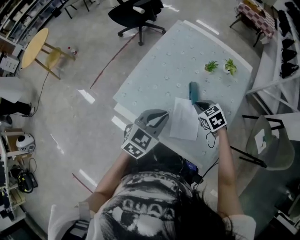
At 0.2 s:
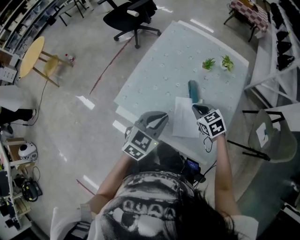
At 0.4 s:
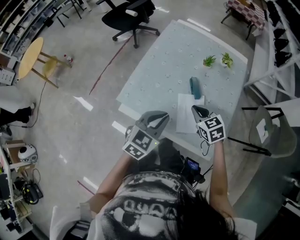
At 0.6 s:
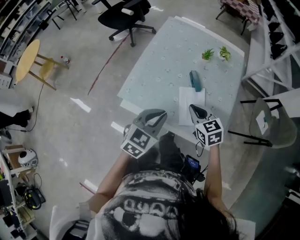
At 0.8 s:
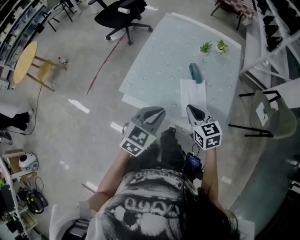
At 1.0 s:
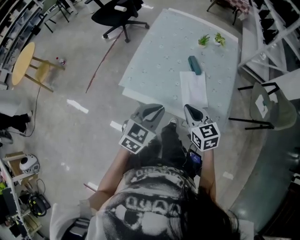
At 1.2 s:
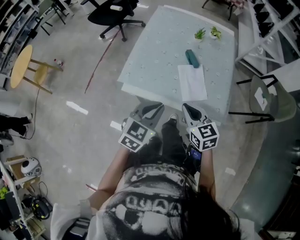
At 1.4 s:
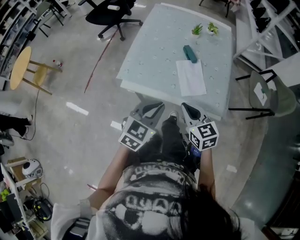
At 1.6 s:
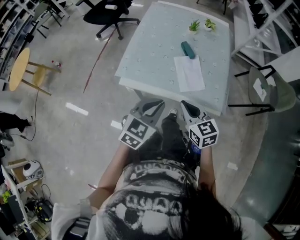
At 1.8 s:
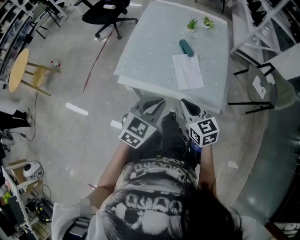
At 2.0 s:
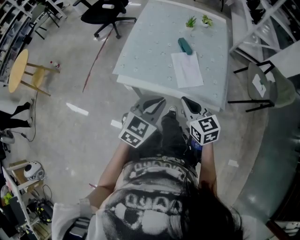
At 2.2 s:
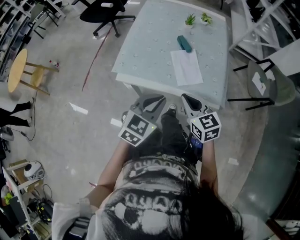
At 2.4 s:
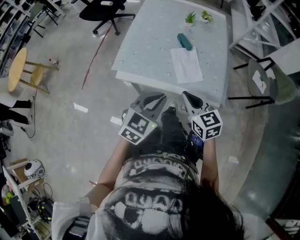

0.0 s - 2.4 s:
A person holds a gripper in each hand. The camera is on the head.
0.0 s - 1.2 s: The left gripper is displaced backward and to the left by approximately 15 cm; the right gripper heads backward, to the left and upward, covering approximately 25 cm, and changes its angle by some 40 degrees.
1.2 s - 2.4 s: The left gripper changes place by approximately 5 cm.

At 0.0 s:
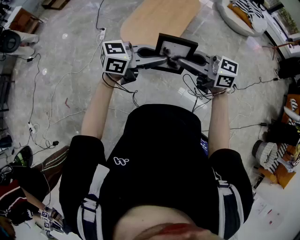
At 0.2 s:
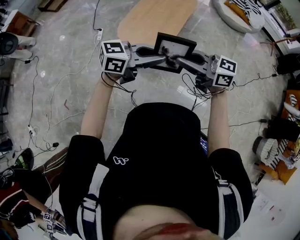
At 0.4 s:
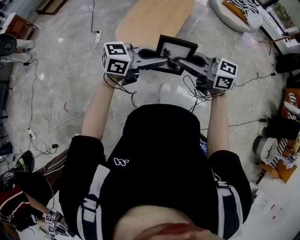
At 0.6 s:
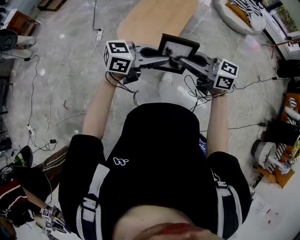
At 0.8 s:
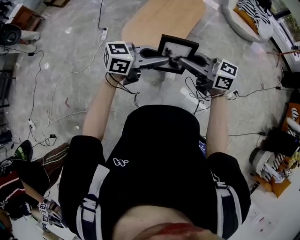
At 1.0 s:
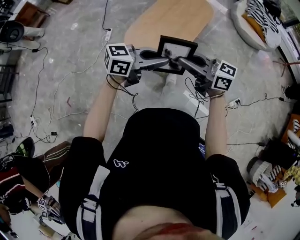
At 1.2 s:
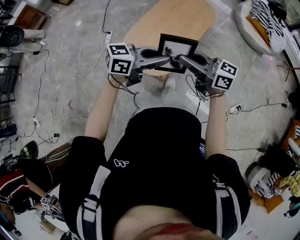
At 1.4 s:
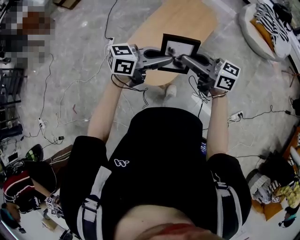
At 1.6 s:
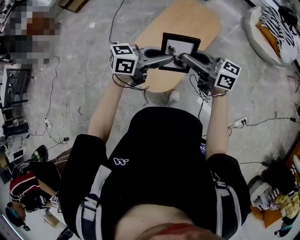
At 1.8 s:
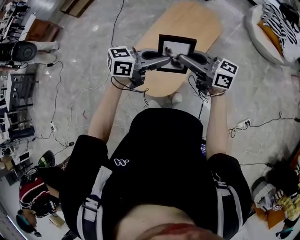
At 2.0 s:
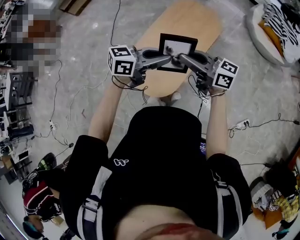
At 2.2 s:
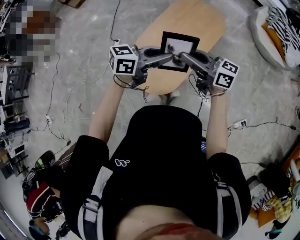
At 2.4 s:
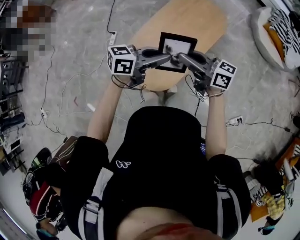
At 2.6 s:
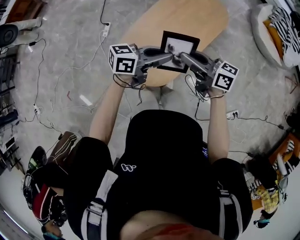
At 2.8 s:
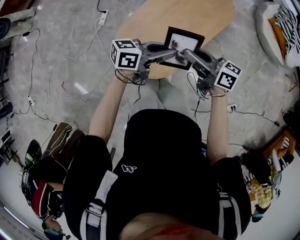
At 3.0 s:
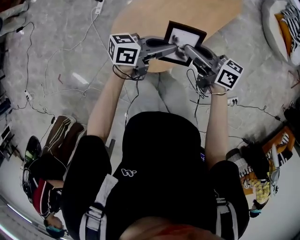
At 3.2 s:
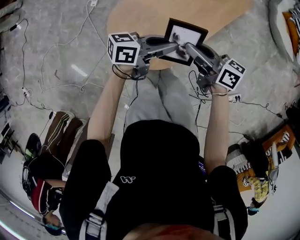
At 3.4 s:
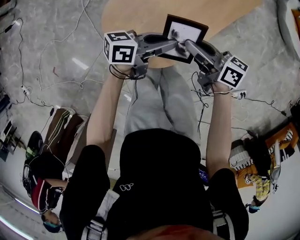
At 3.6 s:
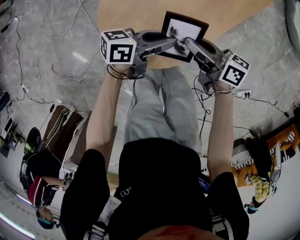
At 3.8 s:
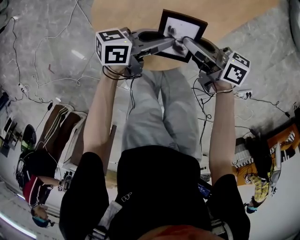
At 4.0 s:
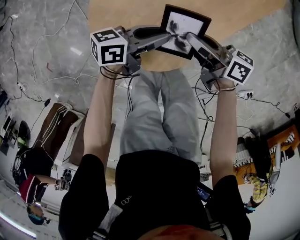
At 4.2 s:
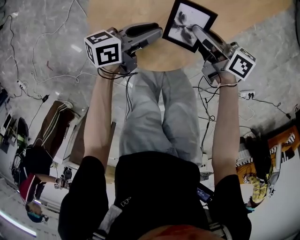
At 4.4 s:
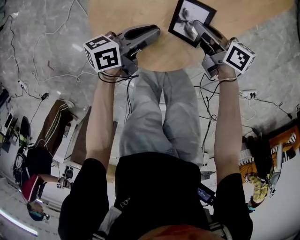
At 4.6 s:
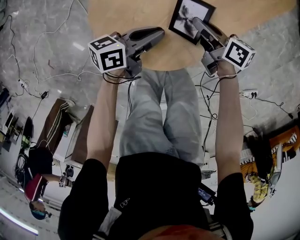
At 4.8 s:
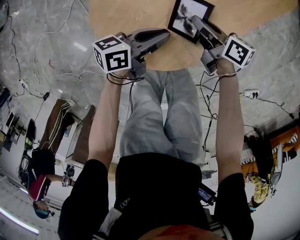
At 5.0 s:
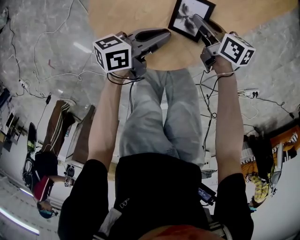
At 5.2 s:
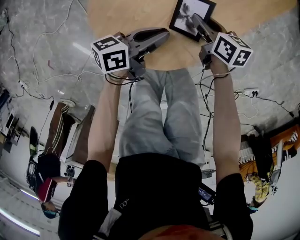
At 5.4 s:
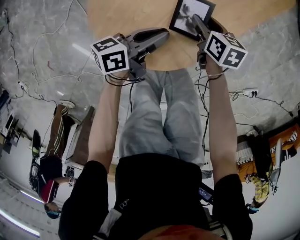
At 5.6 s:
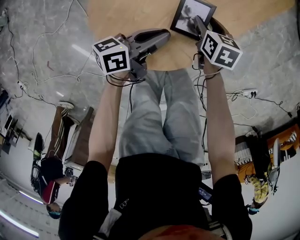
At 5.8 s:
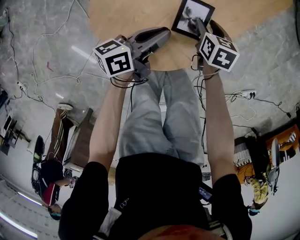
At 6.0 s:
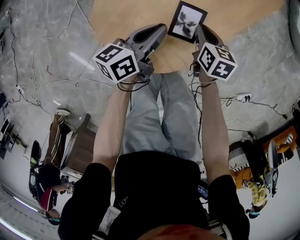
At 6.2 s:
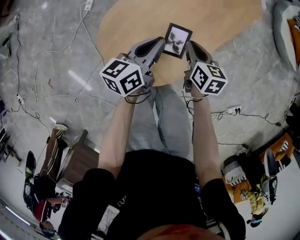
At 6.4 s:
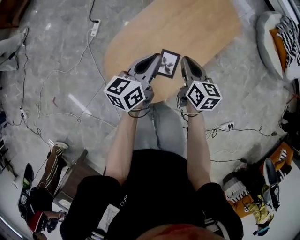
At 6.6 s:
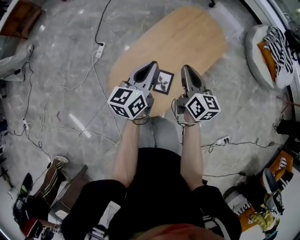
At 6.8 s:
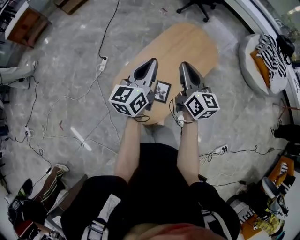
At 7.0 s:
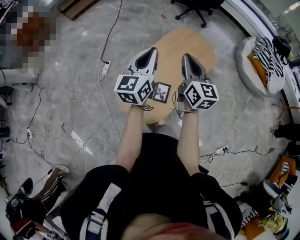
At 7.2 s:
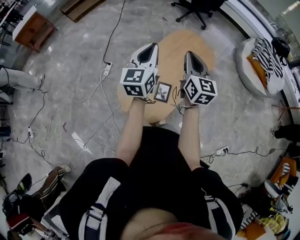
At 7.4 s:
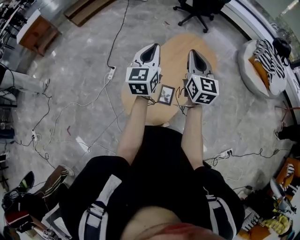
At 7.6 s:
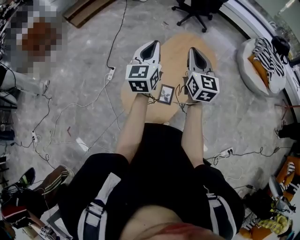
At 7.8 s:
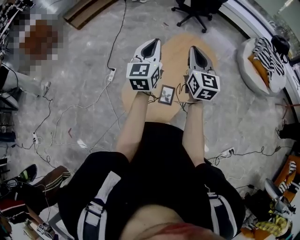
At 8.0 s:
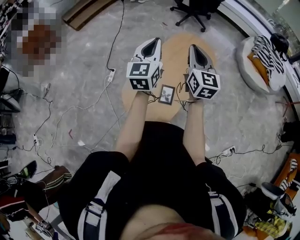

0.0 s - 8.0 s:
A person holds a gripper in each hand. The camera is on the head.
0.0 s - 1.6 s: The right gripper moves about 40 cm, while the left gripper changes place by about 35 cm.
1.6 s - 3.2 s: The grippers both shift downward by approximately 25 cm. The right gripper turns by some 30 degrees. Meanwhile the left gripper changes its angle by about 30 degrees.
3.2 s - 4.8 s: Both grippers move downward, approximately 20 cm.
4.8 s - 6.4 s: The right gripper is displaced upward by approximately 20 cm, rotates about 40 degrees, and opens, then closes again. Meanwhile the left gripper is displaced upward and forward by about 25 cm, and swivels roughly 30 degrees.
6.4 s - 8.0 s: Both grippers move upward and forward, approximately 30 cm. The right gripper changes its angle by roughly 40 degrees. The left gripper turns by approximately 40 degrees.

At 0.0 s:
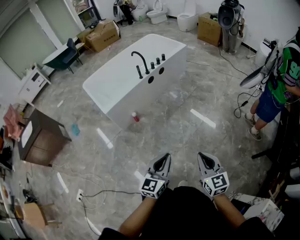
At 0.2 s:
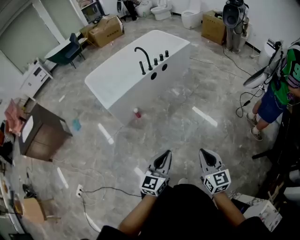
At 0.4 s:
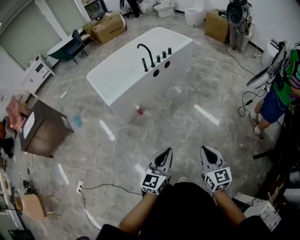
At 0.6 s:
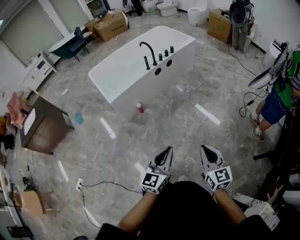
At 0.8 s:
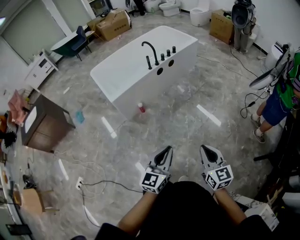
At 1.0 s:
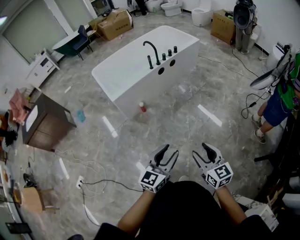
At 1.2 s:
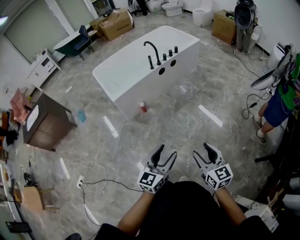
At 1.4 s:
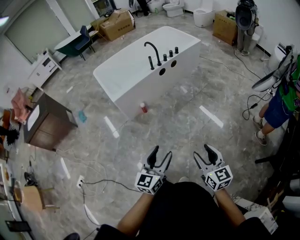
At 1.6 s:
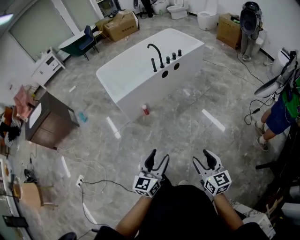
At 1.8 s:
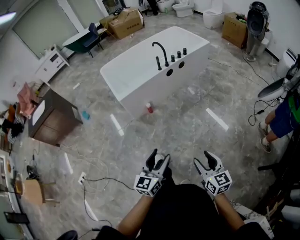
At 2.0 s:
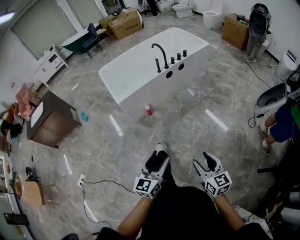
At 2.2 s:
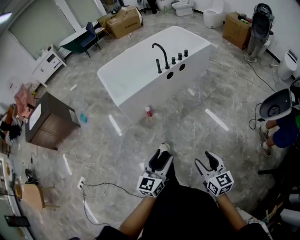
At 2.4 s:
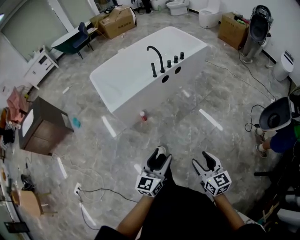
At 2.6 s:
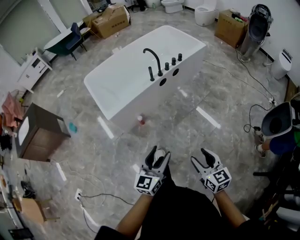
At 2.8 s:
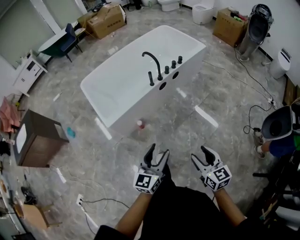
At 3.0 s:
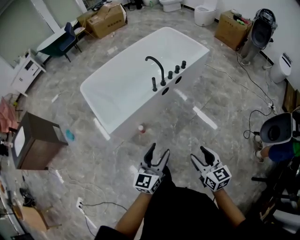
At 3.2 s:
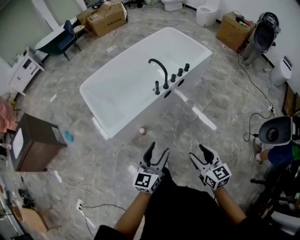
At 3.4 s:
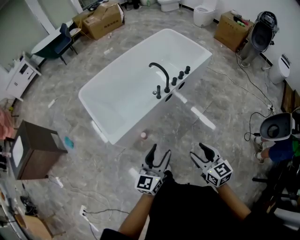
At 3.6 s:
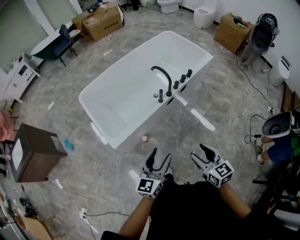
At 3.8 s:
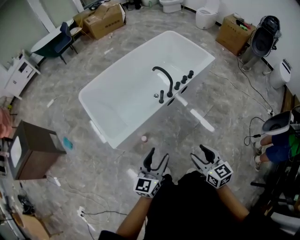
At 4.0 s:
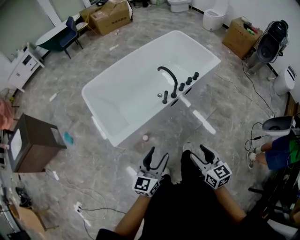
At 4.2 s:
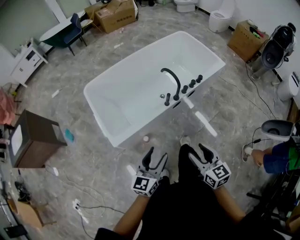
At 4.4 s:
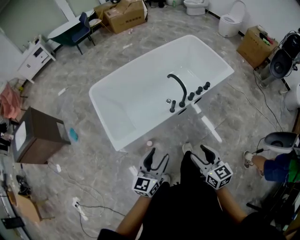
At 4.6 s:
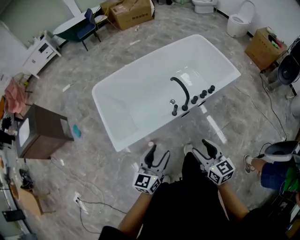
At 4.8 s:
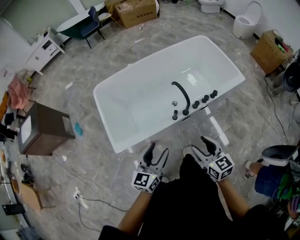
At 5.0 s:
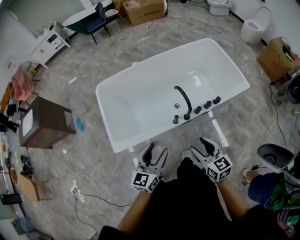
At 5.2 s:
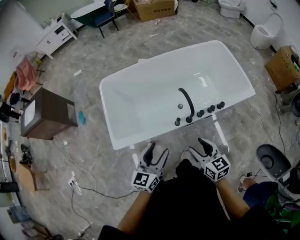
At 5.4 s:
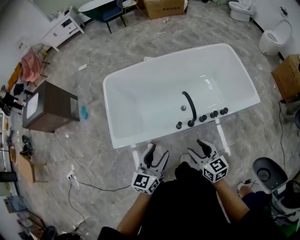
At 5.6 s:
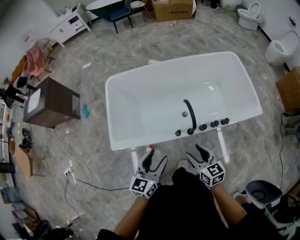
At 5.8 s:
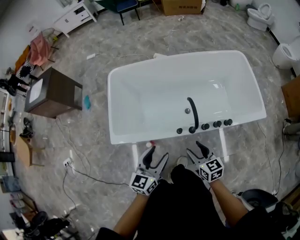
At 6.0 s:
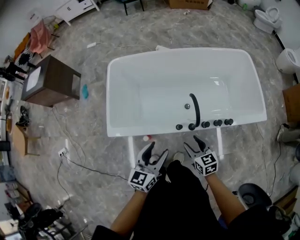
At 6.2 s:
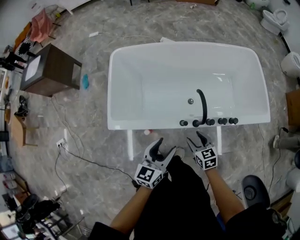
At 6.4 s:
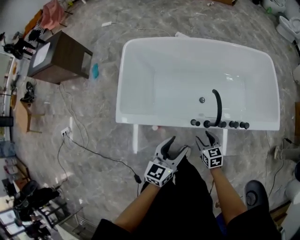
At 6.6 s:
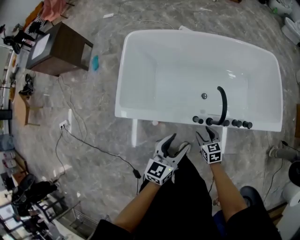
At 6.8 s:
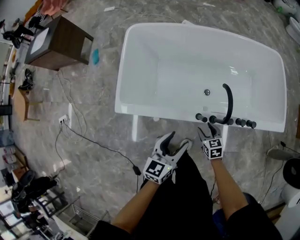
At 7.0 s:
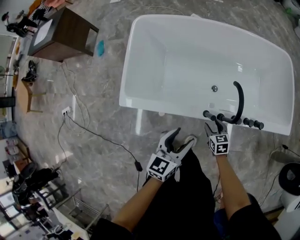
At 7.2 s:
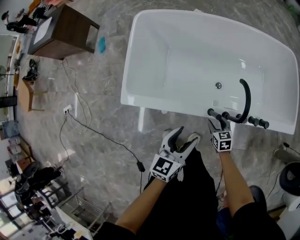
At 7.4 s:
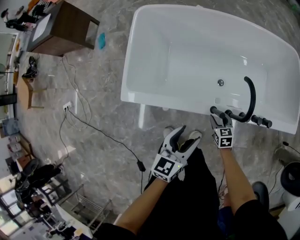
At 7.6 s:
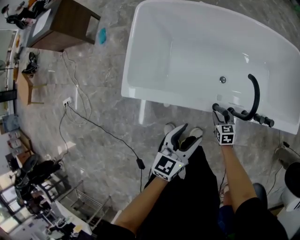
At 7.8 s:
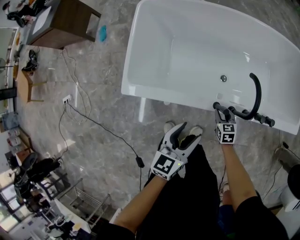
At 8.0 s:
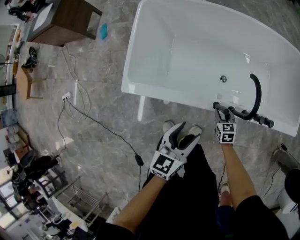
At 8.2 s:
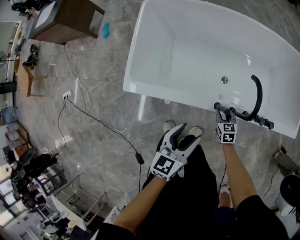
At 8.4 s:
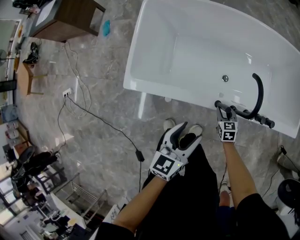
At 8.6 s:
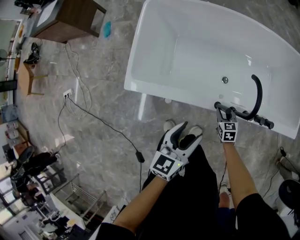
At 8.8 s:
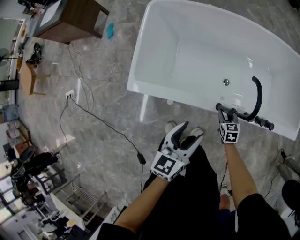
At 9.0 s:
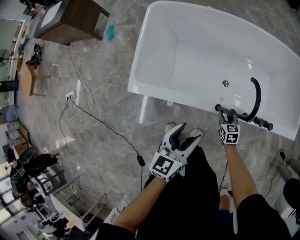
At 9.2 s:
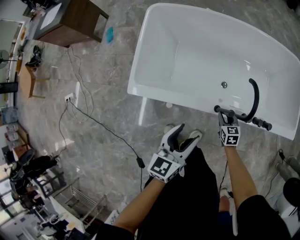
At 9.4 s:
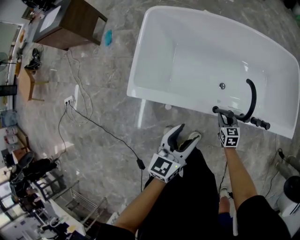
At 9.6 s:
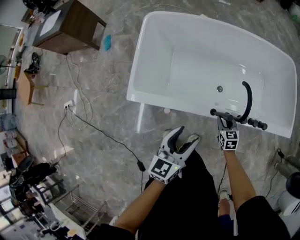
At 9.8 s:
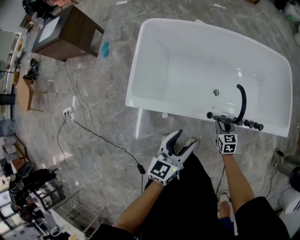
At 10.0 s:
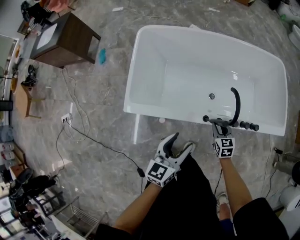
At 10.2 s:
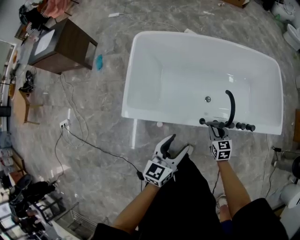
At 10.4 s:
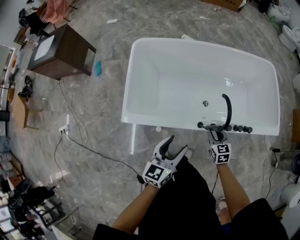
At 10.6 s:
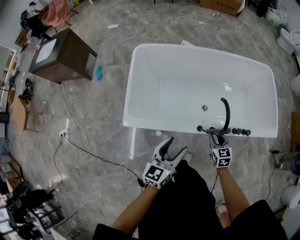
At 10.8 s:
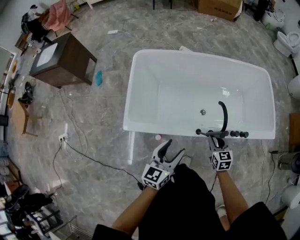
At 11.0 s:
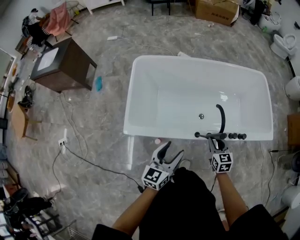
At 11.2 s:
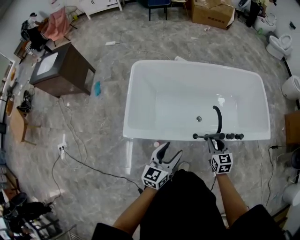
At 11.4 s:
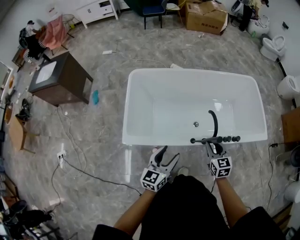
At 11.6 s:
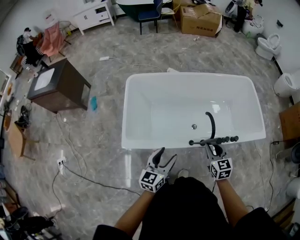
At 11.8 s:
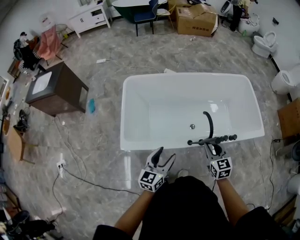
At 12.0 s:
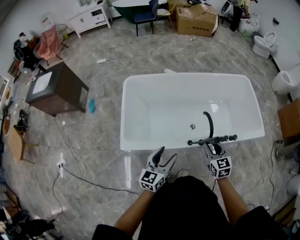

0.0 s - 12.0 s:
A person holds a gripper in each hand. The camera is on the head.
0.0 s - 1.6 s: The right gripper opens its fingers; the left gripper opens up.
1.6 s - 3.0 s: Both grippers are carried forward, roughly 40 cm.
3.0 s - 4.4 s: Both grippers move forward, about 25 cm.
4.4 s - 6.0 s: The right gripper changes place by approximately 35 cm, and rotates some 30 degrees, while the left gripper shifts by about 25 cm, and changes its angle by approximately 30 degrees.
6.0 s - 7.6 s: The right gripper travels downward by about 25 cm; the left gripper is displaced downward by some 15 cm.
7.6 s - 9.0 s: The grippers move only a little.
9.0 s - 10.4 s: The right gripper shifts roughly 15 cm upward. Meanwhile the left gripper moves upward, about 5 cm.
10.4 s - 12.0 s: The right gripper shifts approximately 20 cm upward; the left gripper heads upward, covering approximately 5 cm.

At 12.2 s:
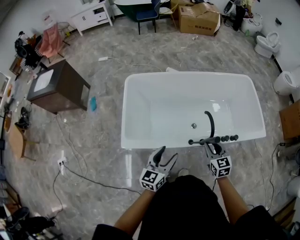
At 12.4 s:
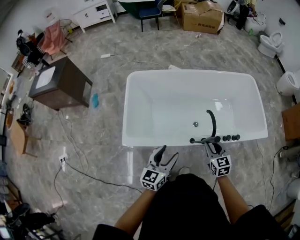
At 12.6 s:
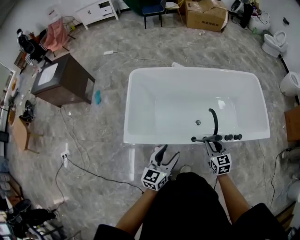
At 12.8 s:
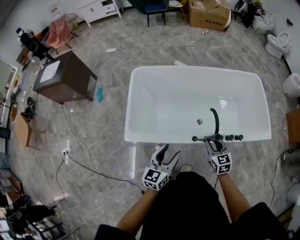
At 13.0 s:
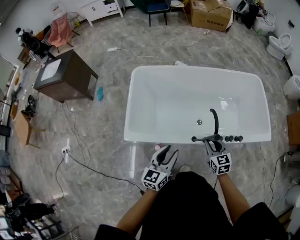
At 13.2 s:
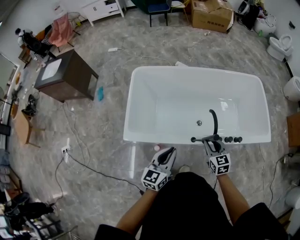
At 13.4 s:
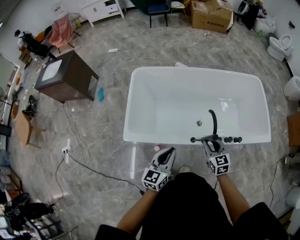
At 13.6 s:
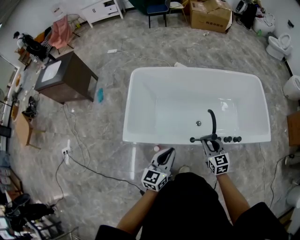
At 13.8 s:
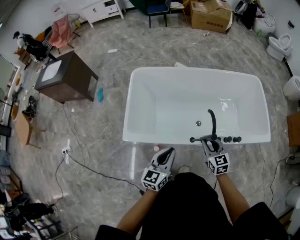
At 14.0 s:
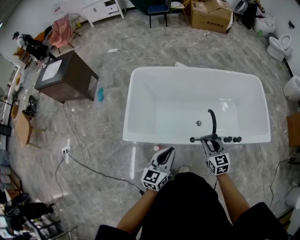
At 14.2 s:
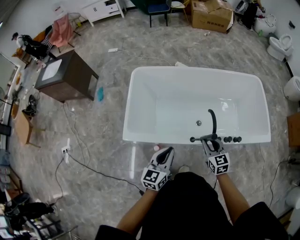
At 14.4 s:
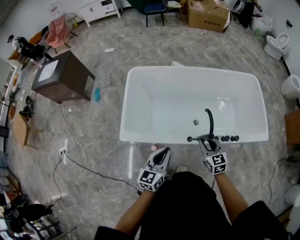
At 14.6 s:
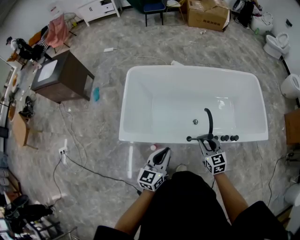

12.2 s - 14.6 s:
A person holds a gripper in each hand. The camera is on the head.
12.2 s - 13.4 s: The left gripper closes.
13.4 s - 14.6 s: Both grippers stay about where they are.
